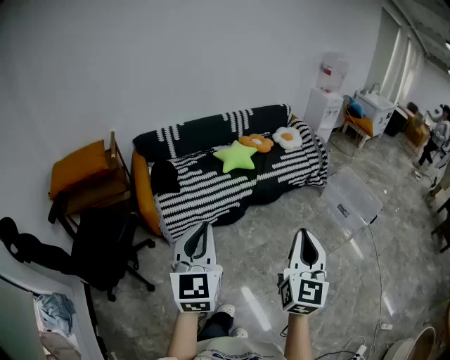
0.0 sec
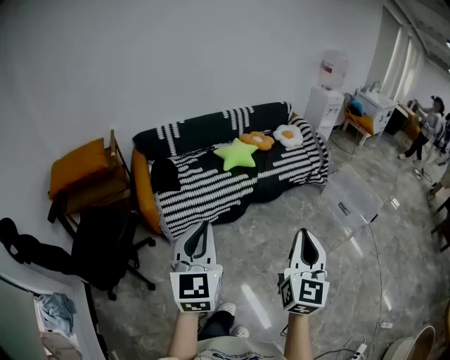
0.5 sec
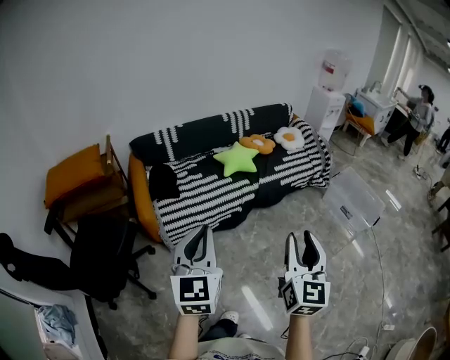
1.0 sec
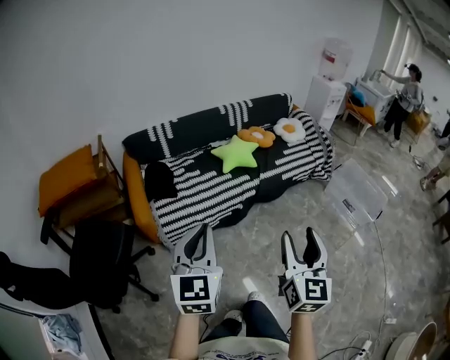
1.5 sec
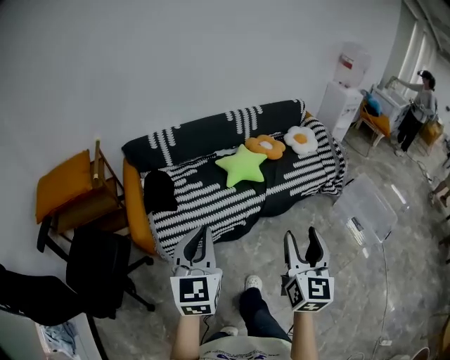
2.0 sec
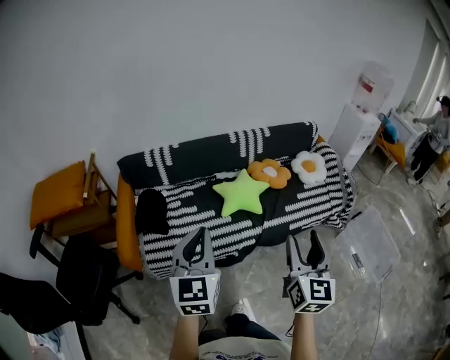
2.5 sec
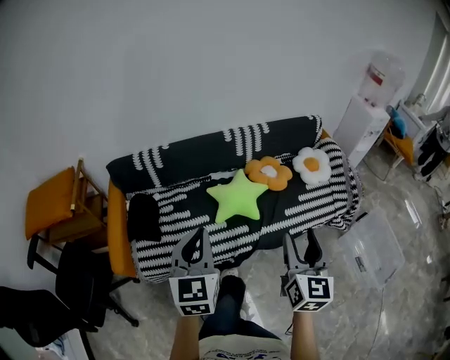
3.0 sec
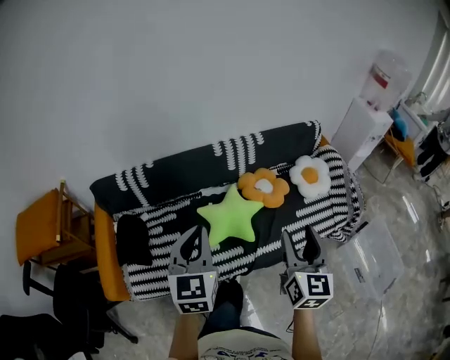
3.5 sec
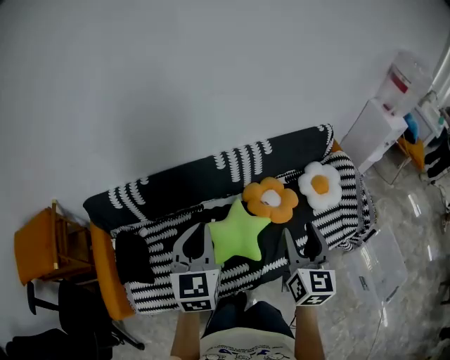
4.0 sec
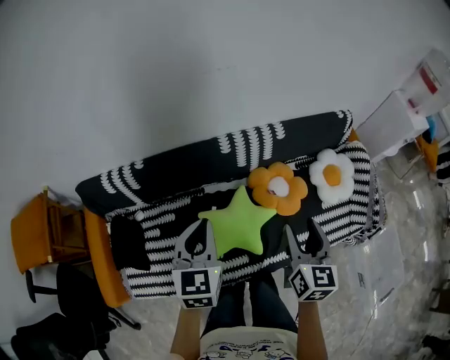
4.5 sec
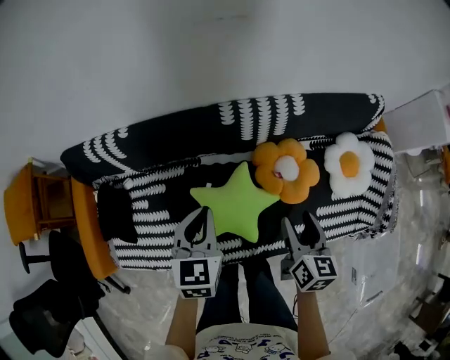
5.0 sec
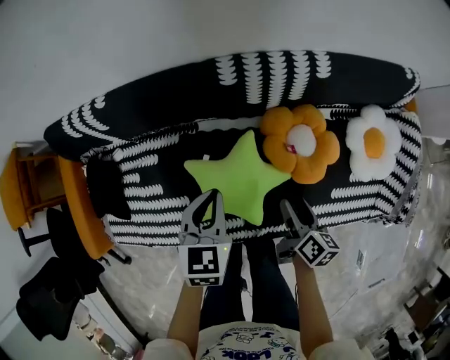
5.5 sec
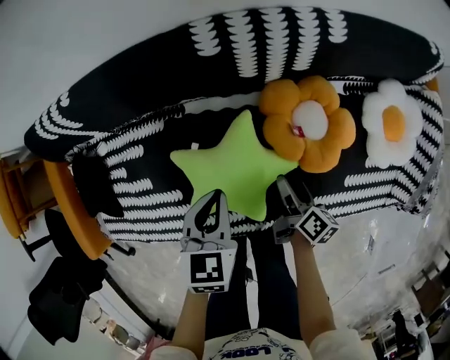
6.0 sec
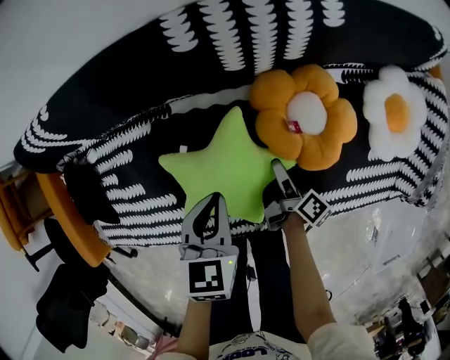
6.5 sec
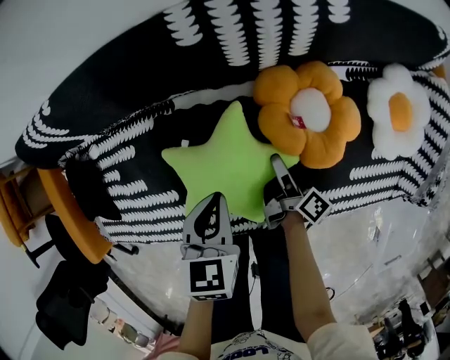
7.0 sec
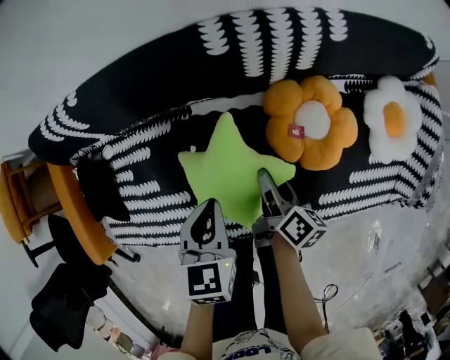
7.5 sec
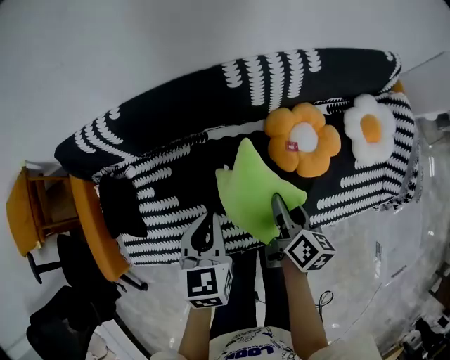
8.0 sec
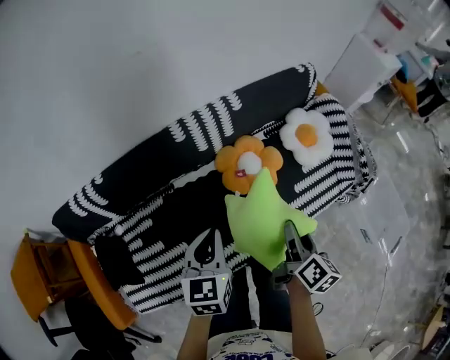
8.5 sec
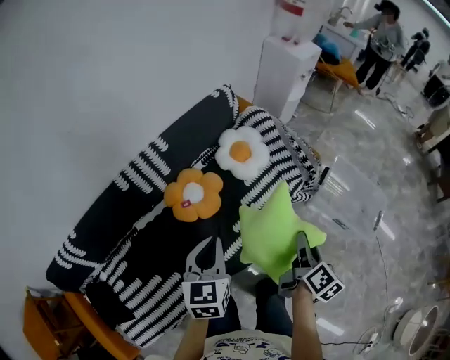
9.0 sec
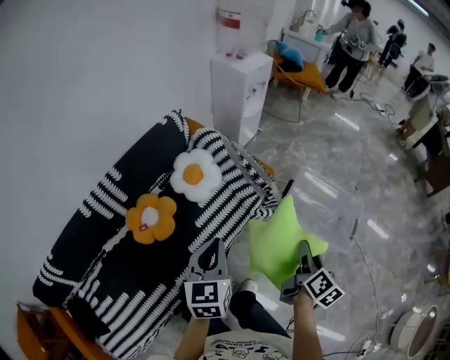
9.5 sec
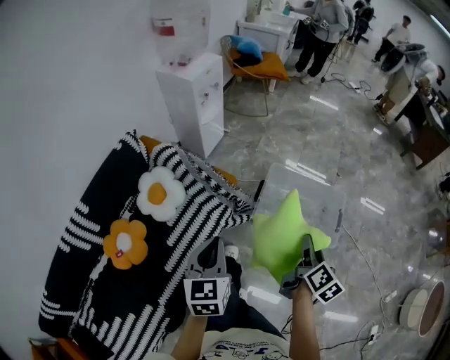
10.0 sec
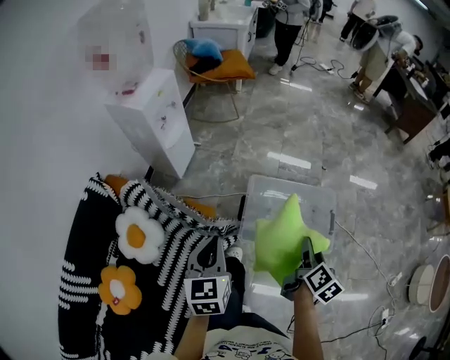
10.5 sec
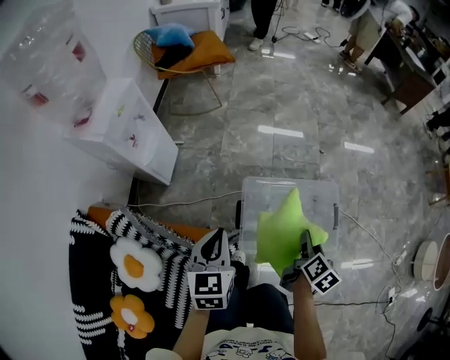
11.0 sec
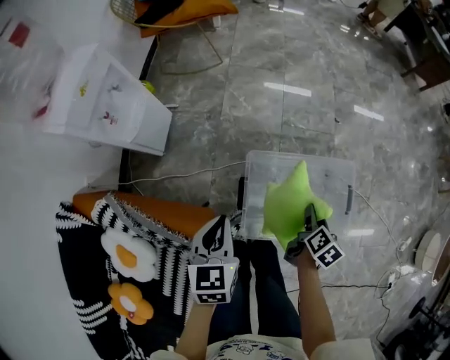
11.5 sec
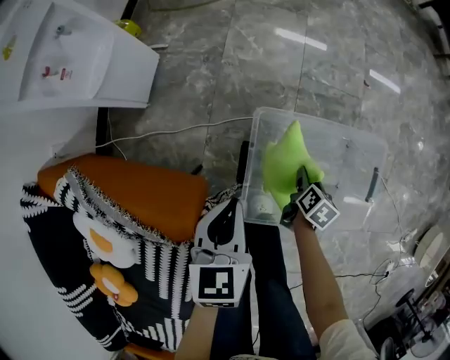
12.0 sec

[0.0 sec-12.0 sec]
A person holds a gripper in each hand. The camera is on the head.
0.0 sec to 2.0 sec: Both grippers move forward, approximately 30 cm. The right gripper opens up.
2.0 sec to 4.0 sec: The two grippers travel together, forward, roughly 70 cm.
4.0 sec to 6.0 sec: Both grippers travel together downward, roughly 50 cm. The left gripper tips its fingers downward by approximately 30 degrees; the right gripper changes its angle by approximately 60 degrees.
6.0 sec to 8.0 sec: The left gripper heads upward, to the left and backward, covering about 15 cm. Meanwhile the right gripper is displaced upward and to the left by roughly 20 cm, and closes its fingers.
8.0 sec to 10.0 sec: The pair of grippers is taken some 80 cm. The left gripper swivels approximately 60 degrees. The right gripper rotates approximately 70 degrees.
10.0 sec to 12.0 sec: The two grippers travel together, forward, some 50 cm. The grippers both shift downward by approximately 40 cm. The right gripper tilts its fingers about 30 degrees downward; the left gripper swivels roughly 20 degrees.

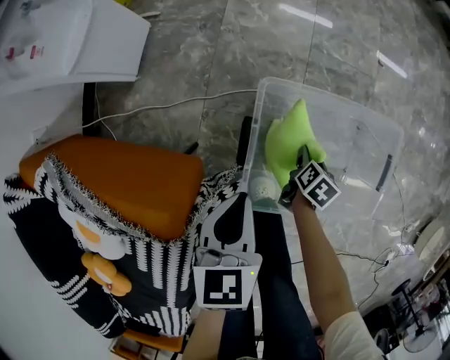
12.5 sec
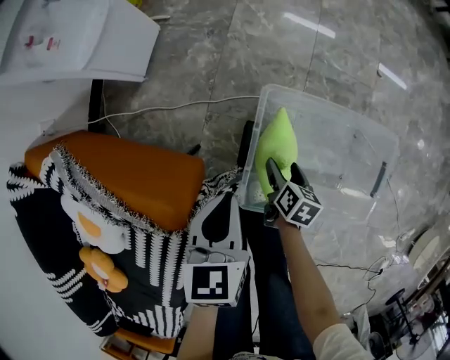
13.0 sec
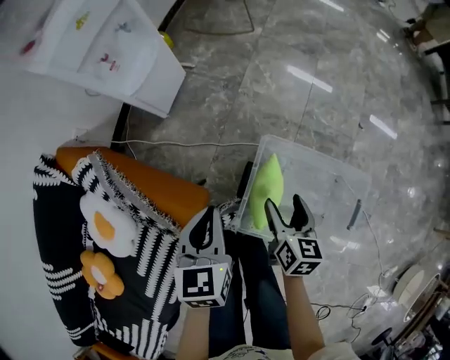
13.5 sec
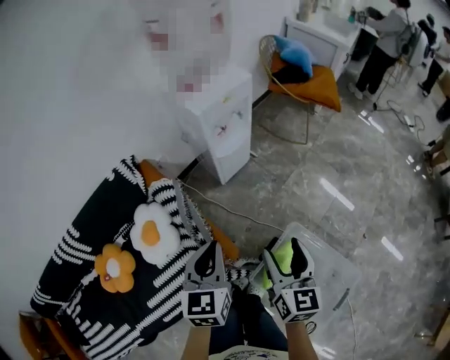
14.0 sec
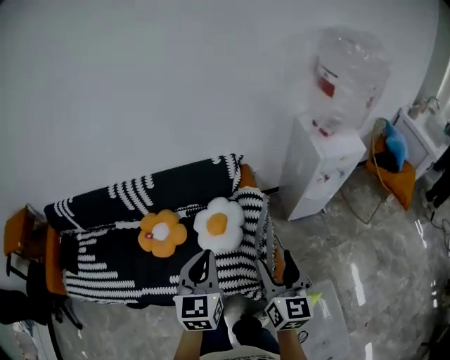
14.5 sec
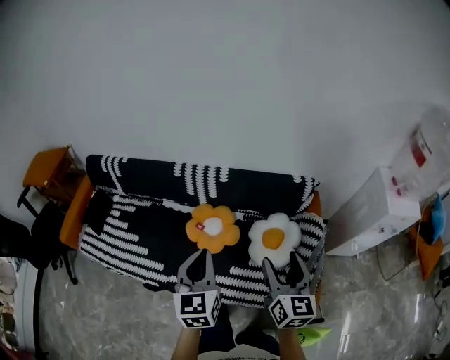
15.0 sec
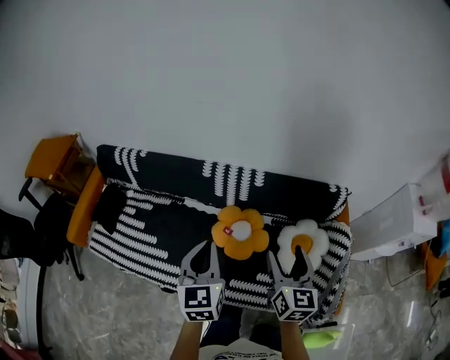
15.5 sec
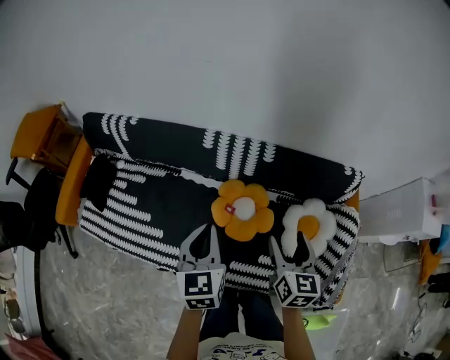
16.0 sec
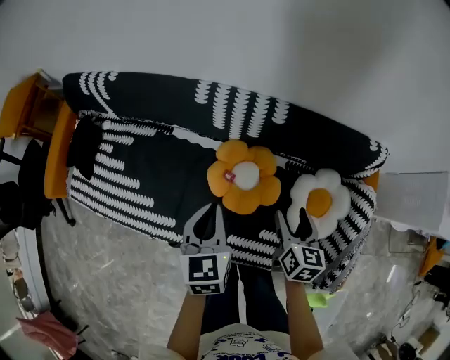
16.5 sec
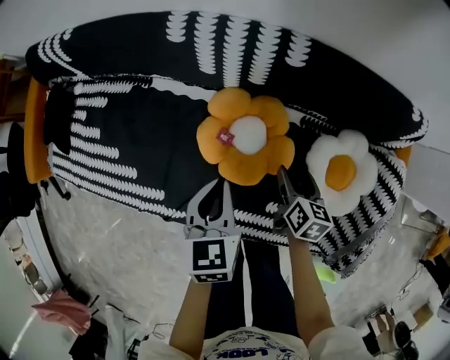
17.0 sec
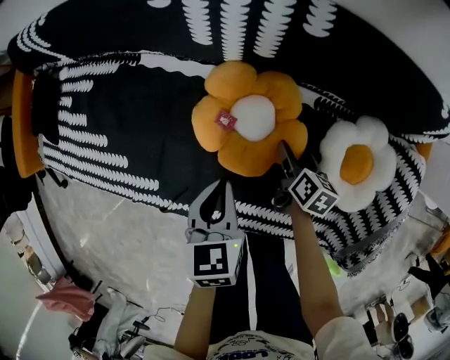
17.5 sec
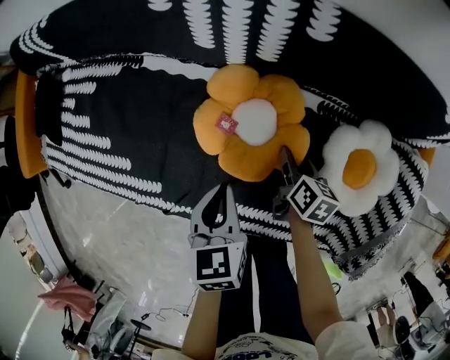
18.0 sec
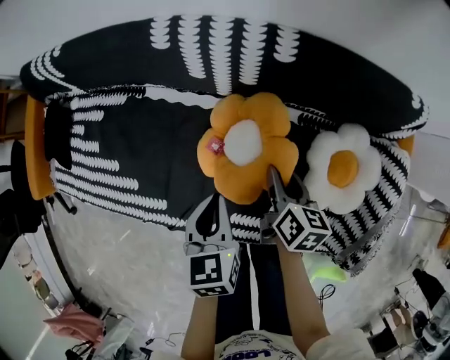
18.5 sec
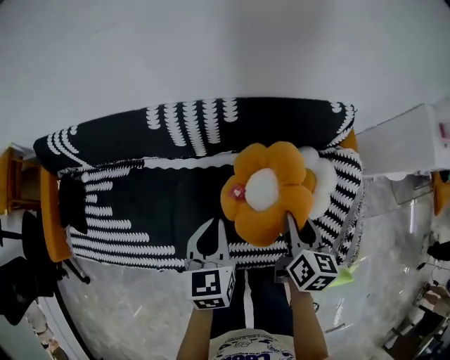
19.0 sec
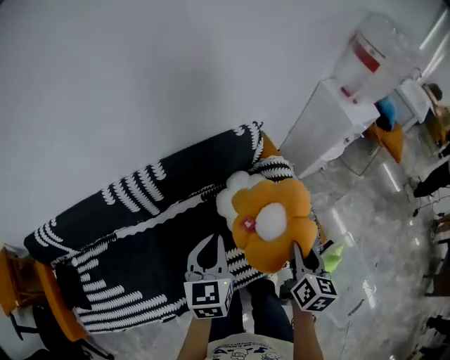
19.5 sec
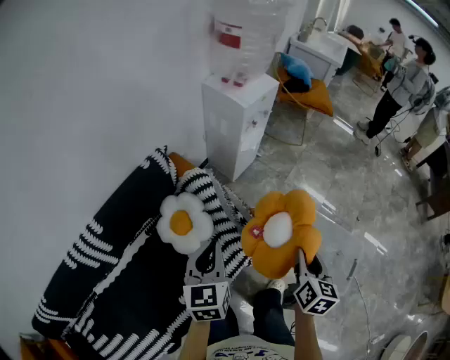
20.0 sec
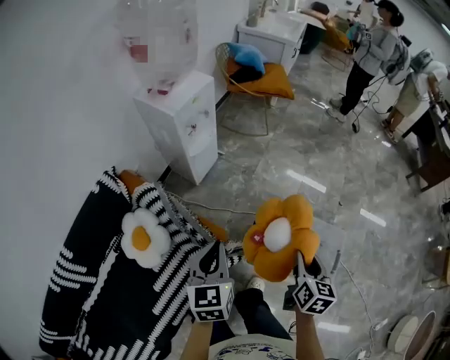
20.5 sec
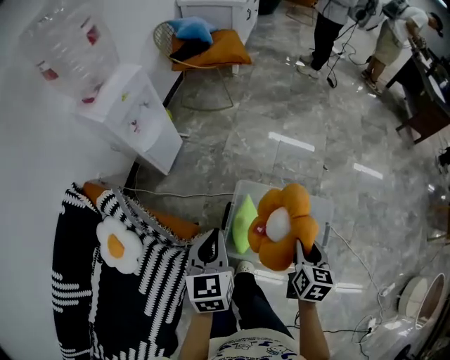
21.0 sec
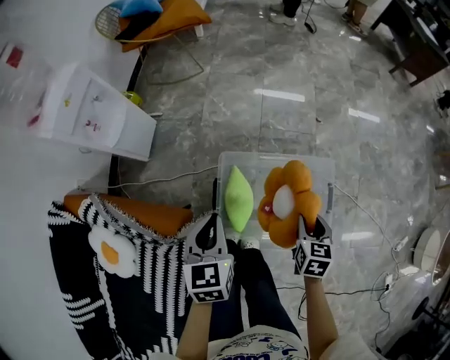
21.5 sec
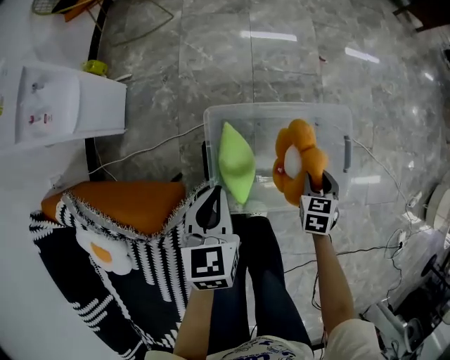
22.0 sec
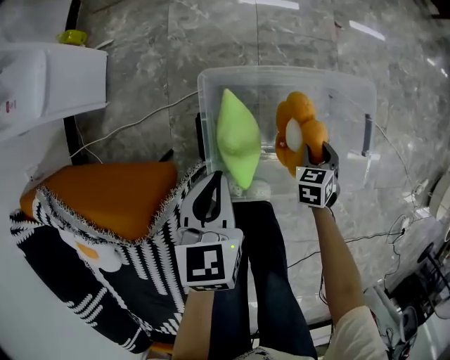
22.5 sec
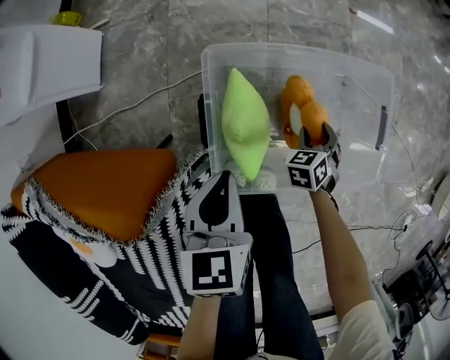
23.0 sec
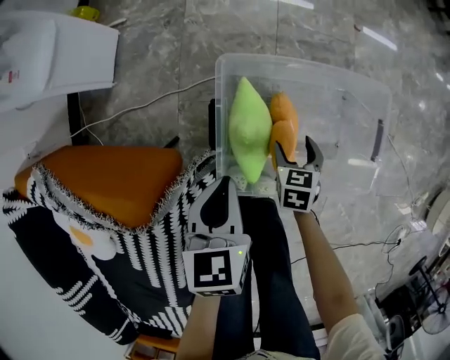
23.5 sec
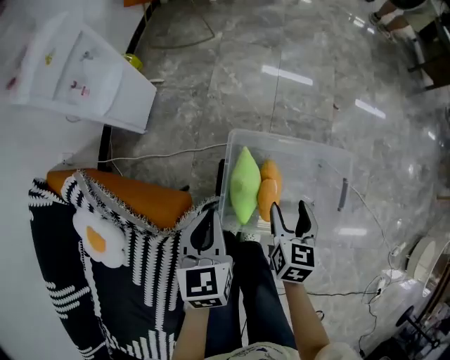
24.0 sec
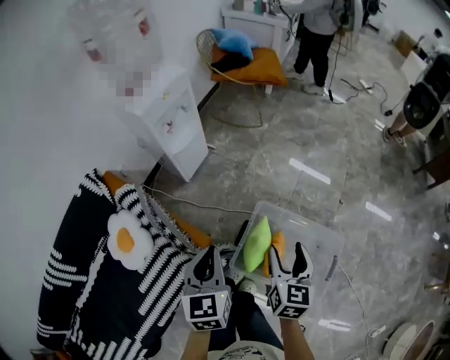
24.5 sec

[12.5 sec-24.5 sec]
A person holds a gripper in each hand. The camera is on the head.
12.5 sec to 14.5 sec: Both grippers are carried about 50 cm. Both grippers travel together upward, roughly 60 cm. The left gripper swivels some 70 degrees. The right gripper angles its fingers upward, by some 60 degrees.
14.5 sec to 16.5 sec: Both grippers are carried to the left and forward, about 50 cm. Both grippers travel together downward, about 25 cm. The left gripper changes its angle by some 30 degrees. The right gripper turns by roughly 30 degrees.
16.5 sec to 18.5 sec: The grippers both shift downward by approximately 15 cm. The right gripper closes up.
18.5 sec to 20.5 sec: Both grippers are carried some 80 cm. The right gripper turns by roughly 80 degrees, while the left gripper turns by some 80 degrees.
20.5 sec to 22.5 sec: The two grippers go roughly 50 cm downward. The right gripper tilts its fingers roughly 30 degrees downward. Meanwhile the left gripper changes its angle by some 40 degrees.
22.5 sec to 24.5 sec: The grippers both shift upward by some 50 cm. The left gripper changes its angle by about 40 degrees; the right gripper points its fingers about 30 degrees further upward, and opens up.

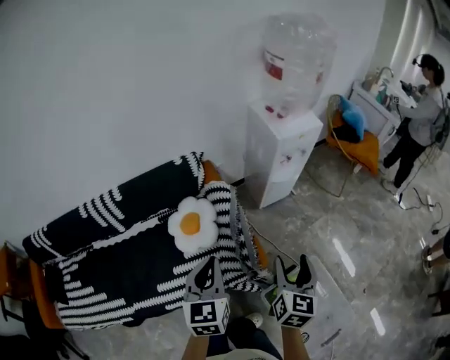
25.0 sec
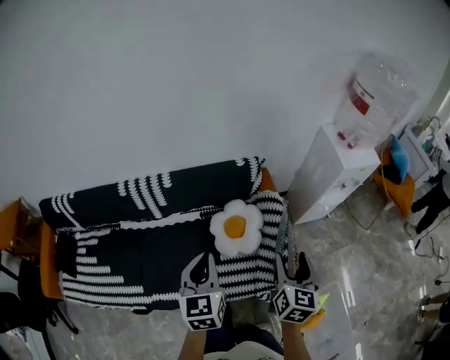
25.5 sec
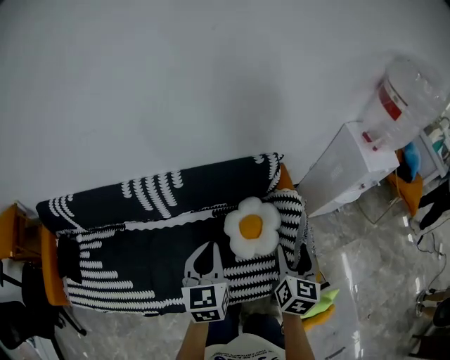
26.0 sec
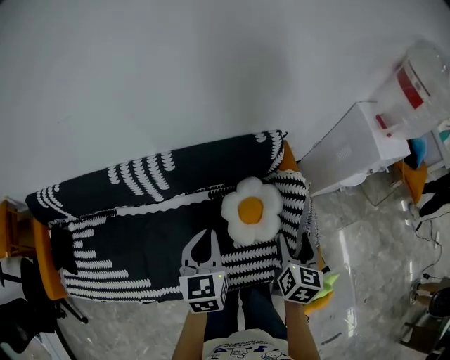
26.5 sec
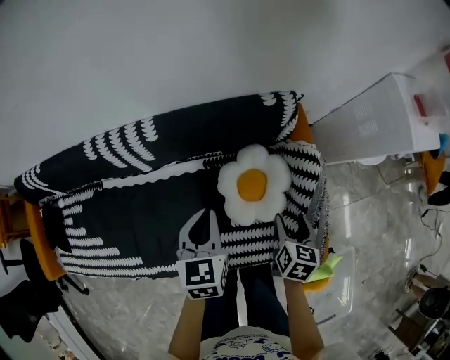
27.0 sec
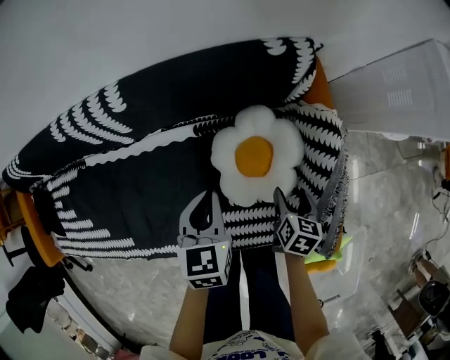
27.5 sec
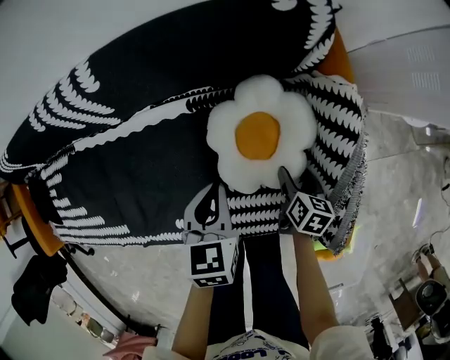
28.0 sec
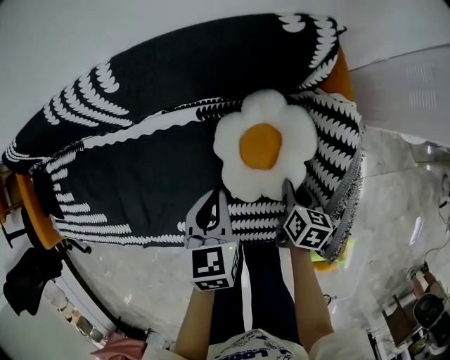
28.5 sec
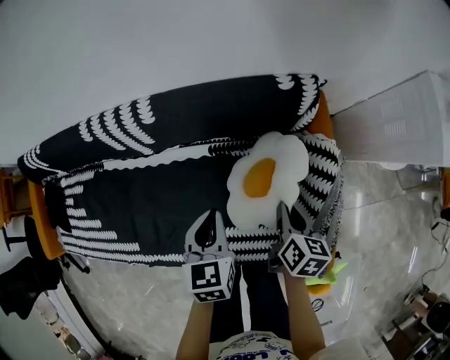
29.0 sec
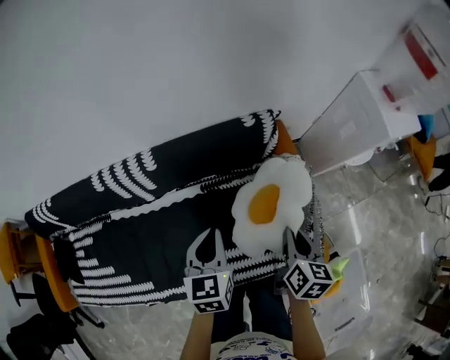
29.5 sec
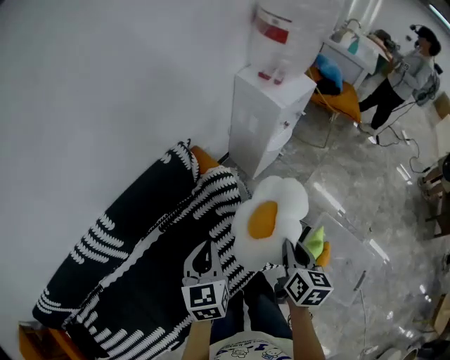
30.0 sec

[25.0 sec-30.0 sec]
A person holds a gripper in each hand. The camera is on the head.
25.0 sec to 27.5 sec: The right gripper heads downward, forward and to the left, covering about 60 cm, and points its fingers approximately 40 degrees further downward, while the left gripper moves downward, to the left and forward, some 50 cm, and rotates approximately 30 degrees.
27.5 sec to 30.0 sec: Both grippers travel together upward, approximately 30 cm. The right gripper rotates roughly 40 degrees, and closes up; the left gripper changes its angle by roughly 40 degrees.
